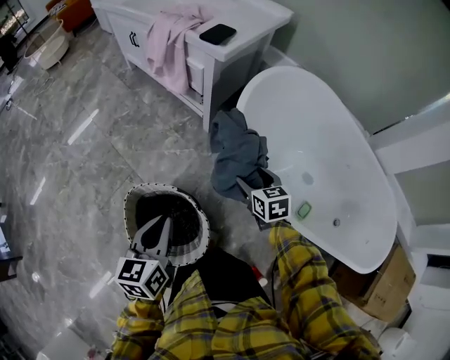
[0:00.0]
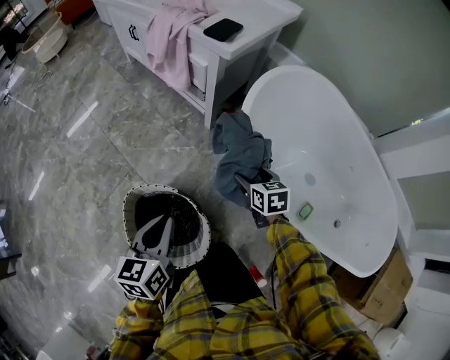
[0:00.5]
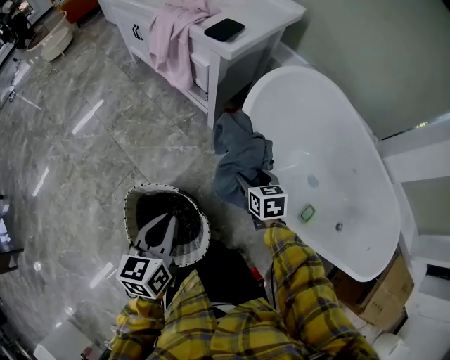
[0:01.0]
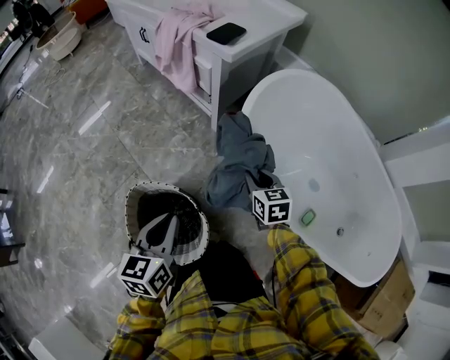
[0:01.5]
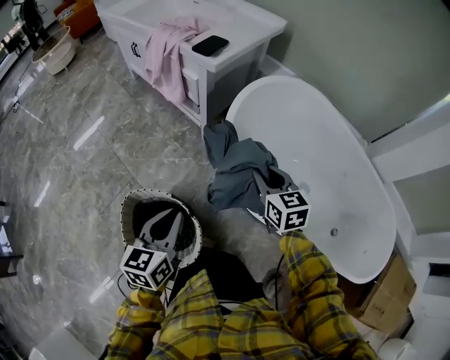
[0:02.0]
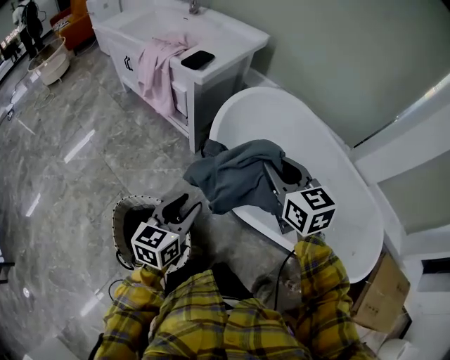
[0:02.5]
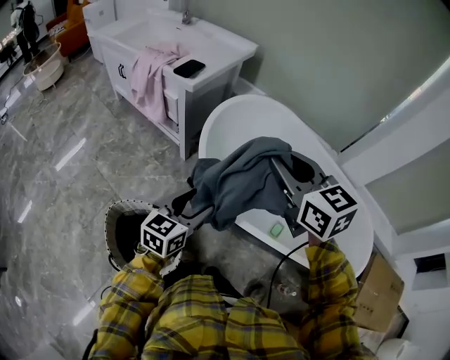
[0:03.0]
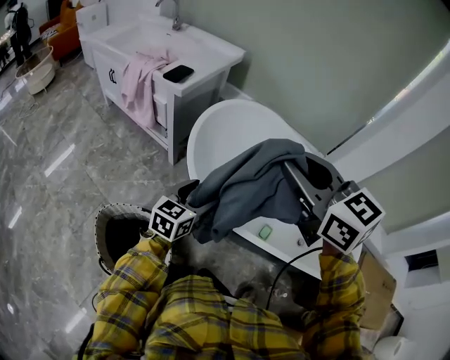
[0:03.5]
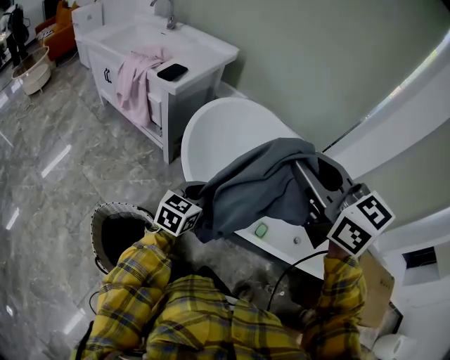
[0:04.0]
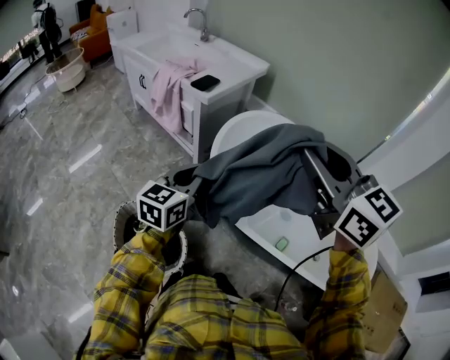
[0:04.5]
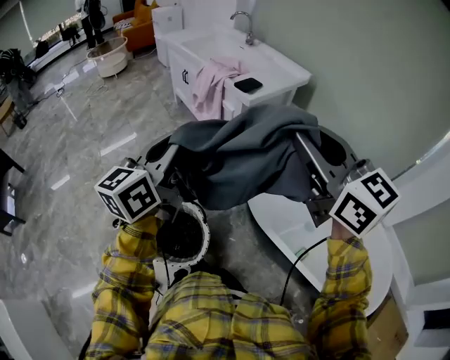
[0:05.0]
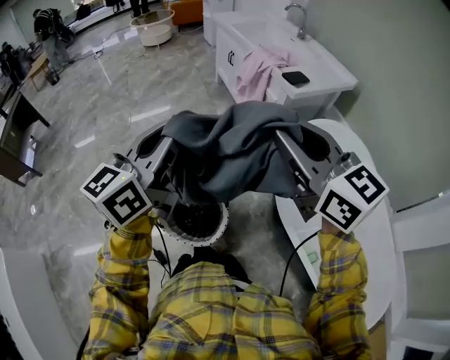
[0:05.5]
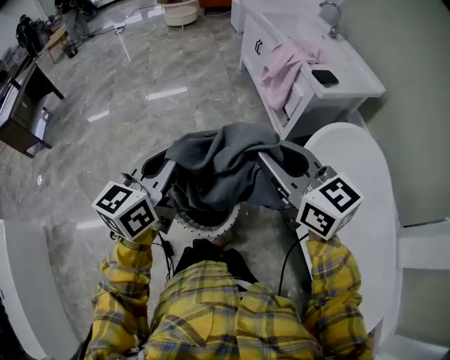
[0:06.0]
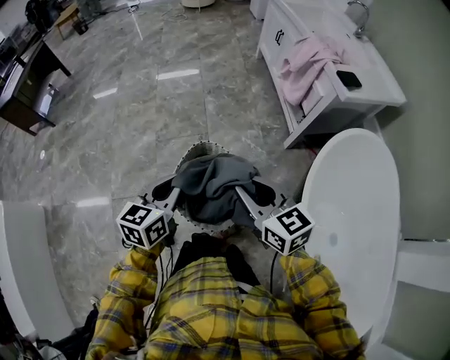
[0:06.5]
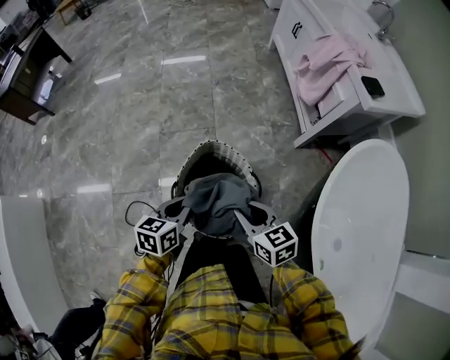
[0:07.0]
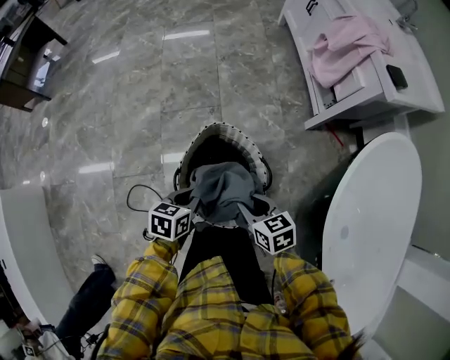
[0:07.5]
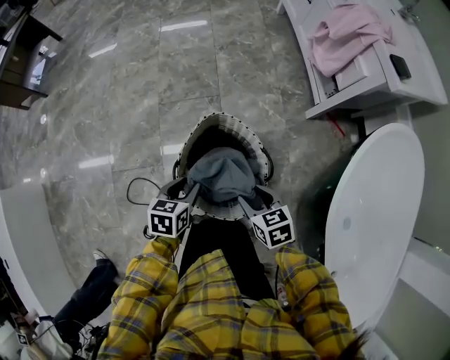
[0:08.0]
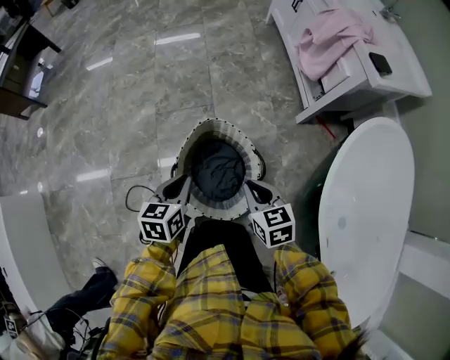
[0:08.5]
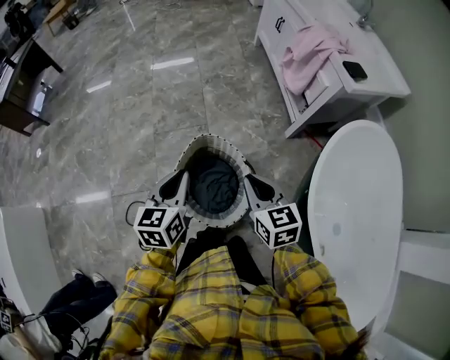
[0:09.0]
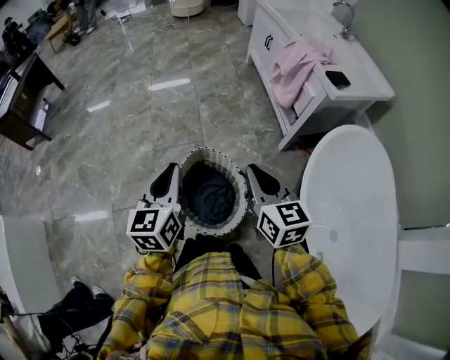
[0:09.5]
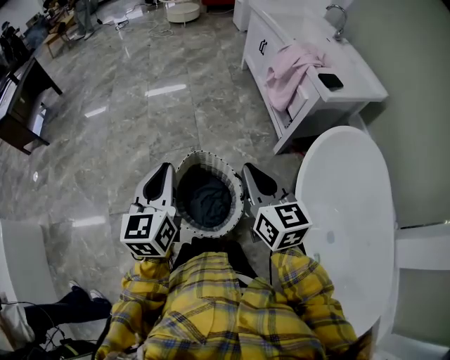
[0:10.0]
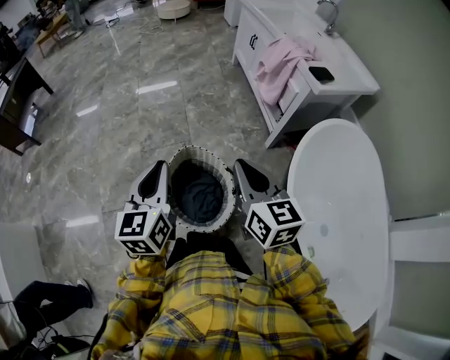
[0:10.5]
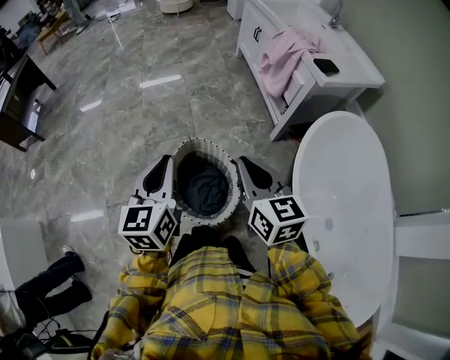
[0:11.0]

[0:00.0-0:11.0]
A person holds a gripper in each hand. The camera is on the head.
0:00.0 to 0:02.0: The right gripper goes about 10 cm upward, and closes its fingers, while the left gripper heads to the right, covering about 5 cm.
0:02.0 to 0:03.5: The left gripper goes about 20 cm to the right and forward, changes its angle by about 30 degrees, and opens up; the right gripper travels upward by approximately 30 cm.
0:03.5 to 0:05.5: The left gripper shifts by some 40 cm, turns by about 50 degrees, and closes its fingers. The right gripper shifts by approximately 20 cm, and changes its angle by roughly 40 degrees.
0:05.5 to 0:07.5: Both grippers travel together downward, about 50 cm. The left gripper tips its fingers downward by about 50 degrees; the right gripper angles its fingers downward, by about 40 degrees.
0:07.5 to 0:09.0: Both grippers travel together upward, about 15 cm. The left gripper turns by some 30 degrees, and opens and closes again. Meanwhile the right gripper swivels approximately 20 degrees.
0:09.0 to 0:11.0: Both grippers travel together upward, roughly 10 cm.

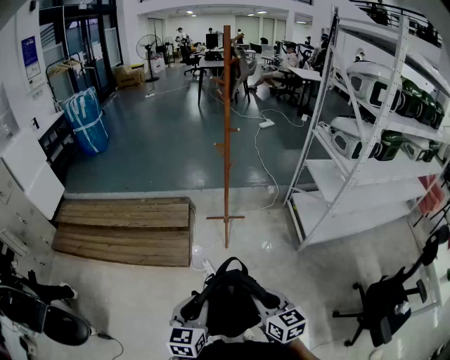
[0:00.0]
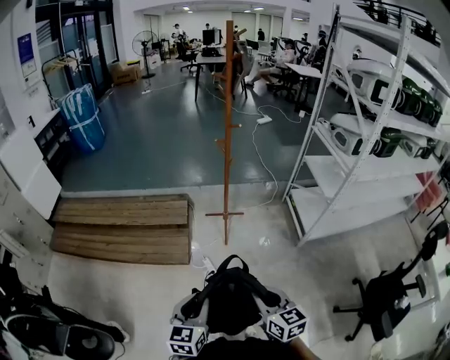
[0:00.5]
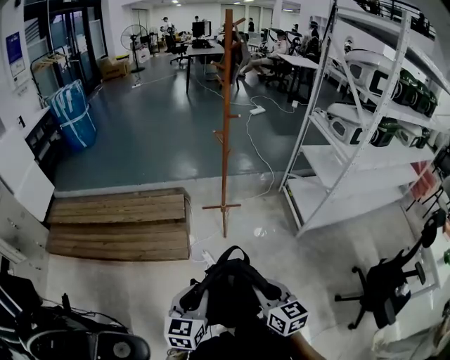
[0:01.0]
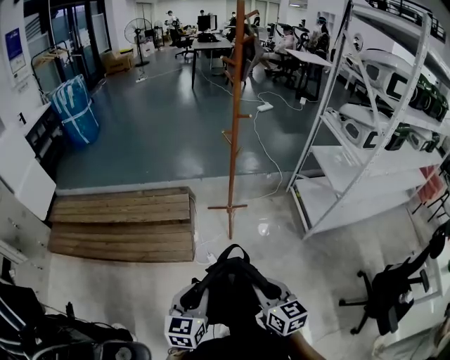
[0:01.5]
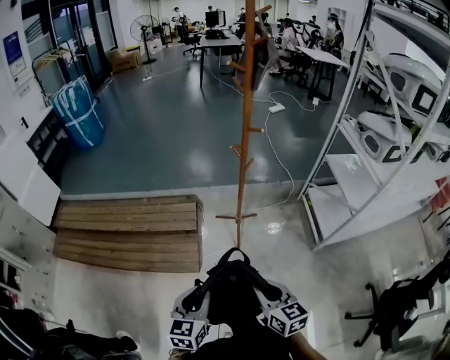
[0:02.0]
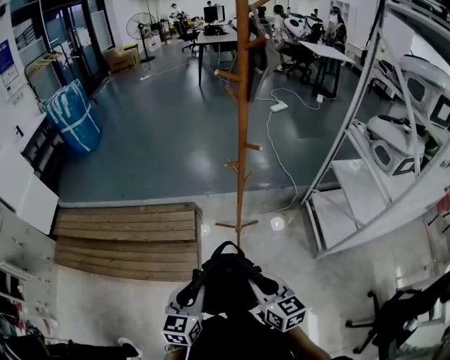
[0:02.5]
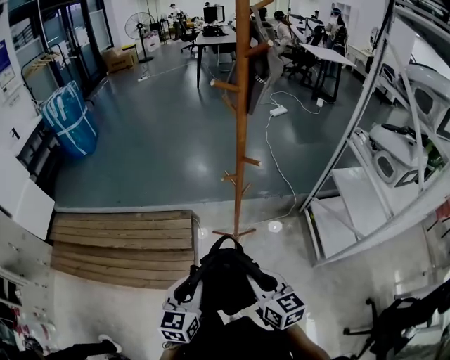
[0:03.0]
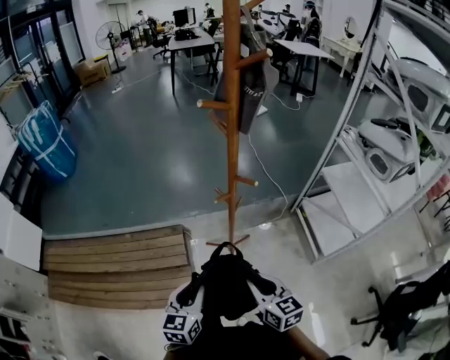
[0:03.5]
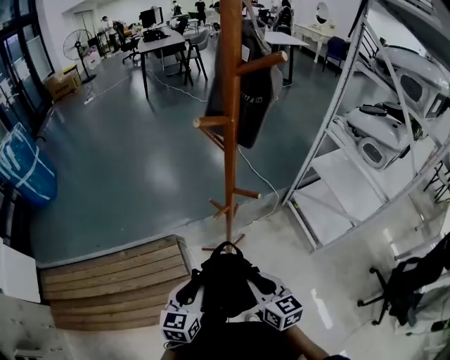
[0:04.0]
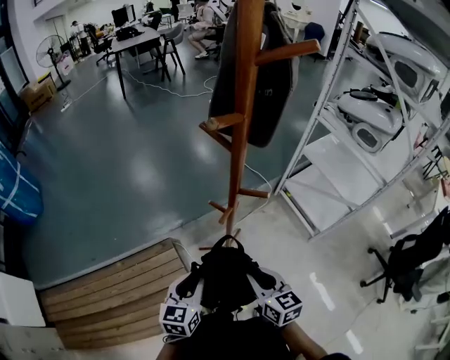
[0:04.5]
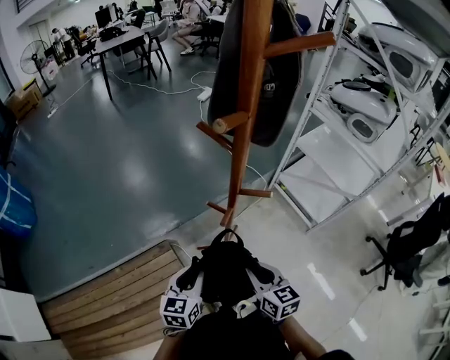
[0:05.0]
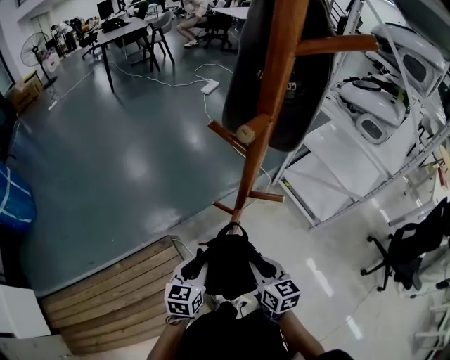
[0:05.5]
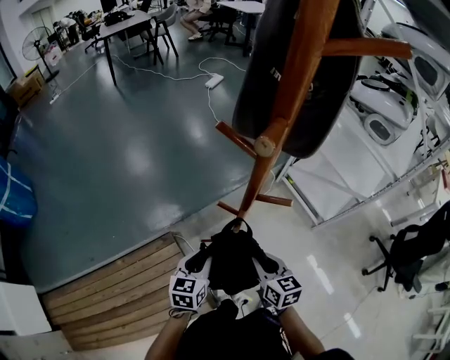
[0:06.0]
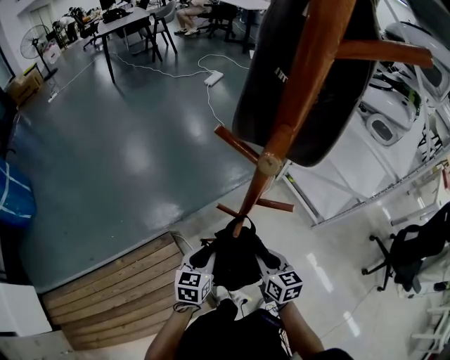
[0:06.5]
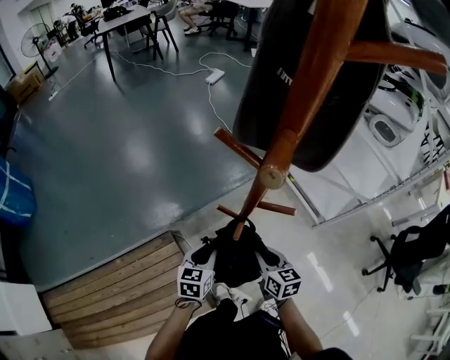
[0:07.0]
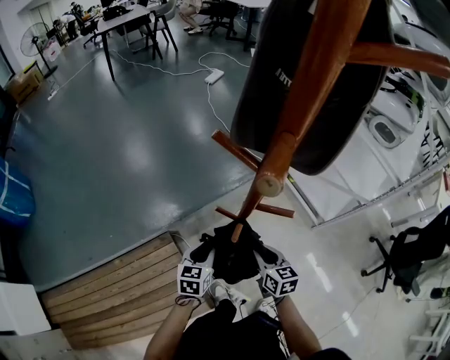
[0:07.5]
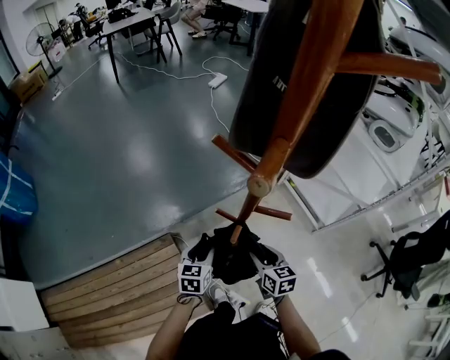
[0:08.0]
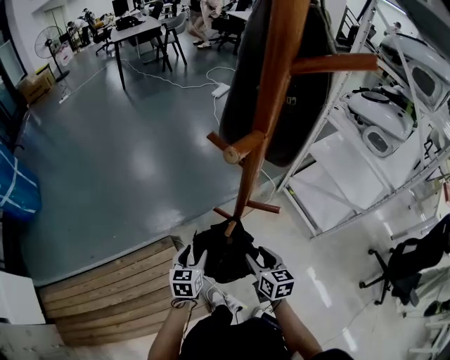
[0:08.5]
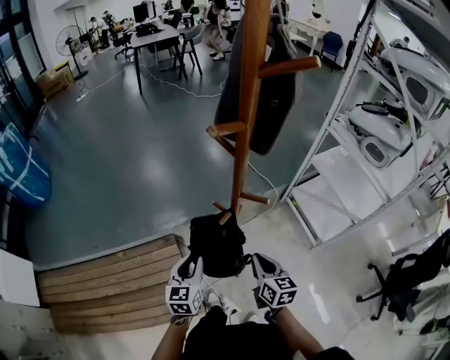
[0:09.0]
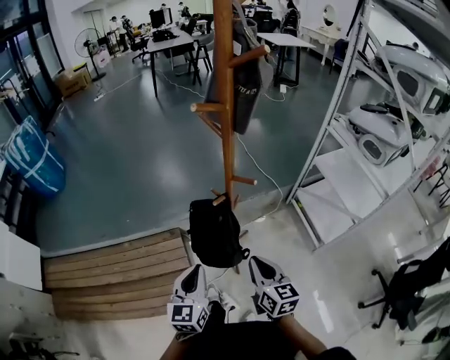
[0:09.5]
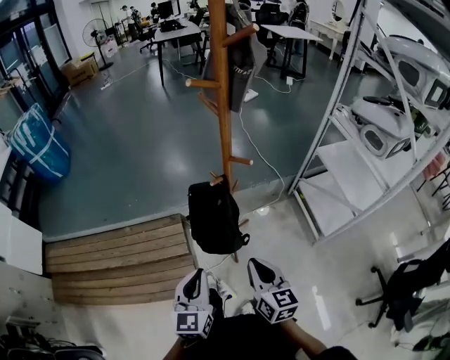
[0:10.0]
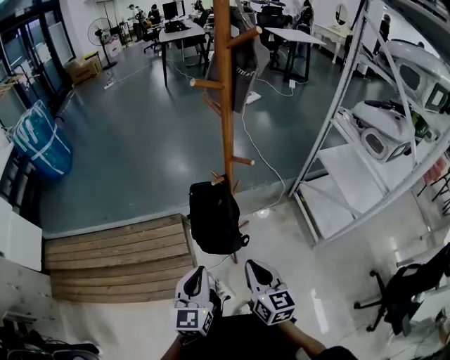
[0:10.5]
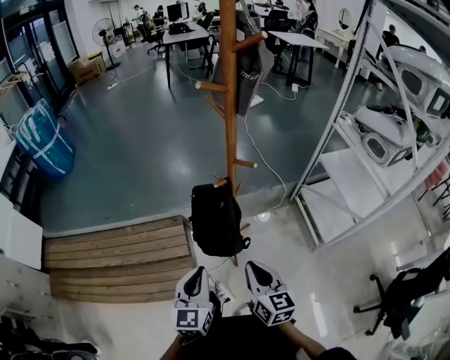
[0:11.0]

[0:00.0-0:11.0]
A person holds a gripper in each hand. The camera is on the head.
0:00.0 to 0:02.0: Both grippers move forward, some 20 cm.
0:02.0 to 0:03.5: The grippers both shift forward by some 30 cm.
0:03.5 to 0:05.5: The left gripper shifts by about 25 cm, and turns by roughly 30 degrees, while the right gripper changes place by approximately 20 cm, and changes its angle by some 30 degrees.
0:05.5 to 0:07.5: The two grippers go some 10 cm downward and forward.
0:07.5 to 0:09.0: The grippers both shift upward and backward by approximately 15 cm. The left gripper rotates some 20 degrees, and opens and closes again; the right gripper opens, then closes once more.
0:09.0 to 0:11.0: The right gripper shifts about 20 cm backward and upward. The left gripper moves backward, about 20 cm, and closes.

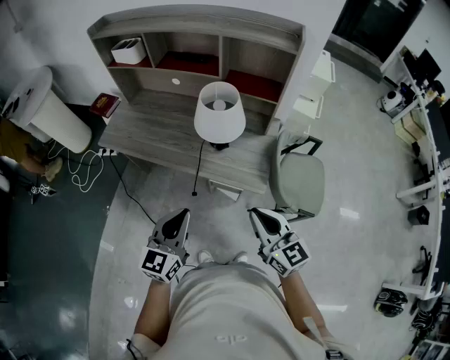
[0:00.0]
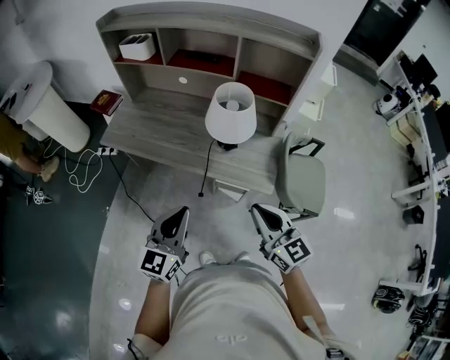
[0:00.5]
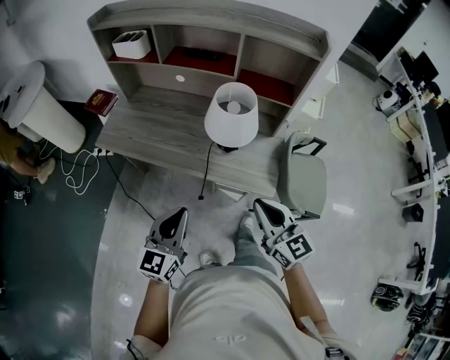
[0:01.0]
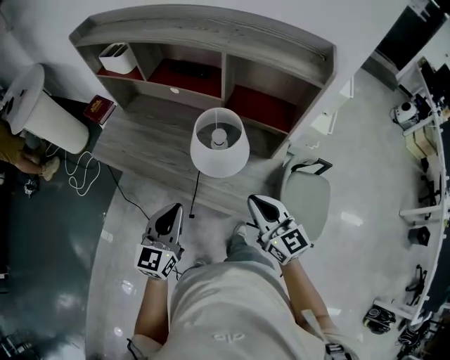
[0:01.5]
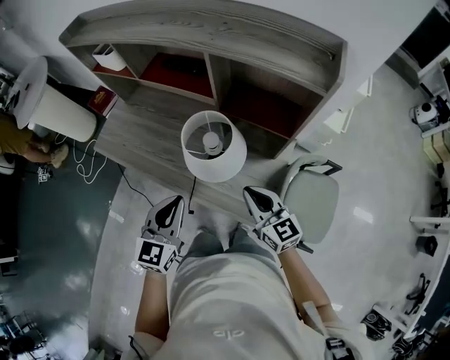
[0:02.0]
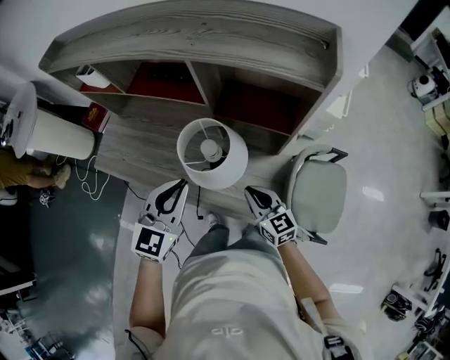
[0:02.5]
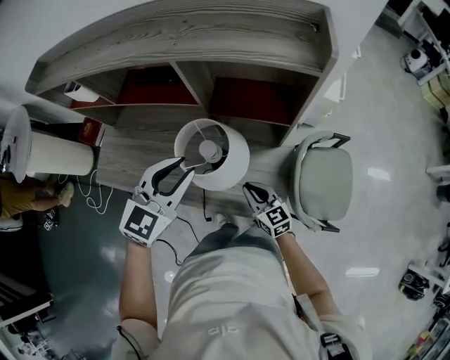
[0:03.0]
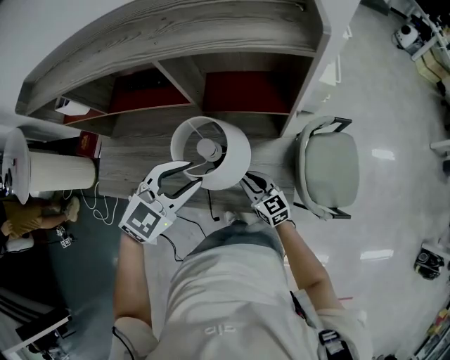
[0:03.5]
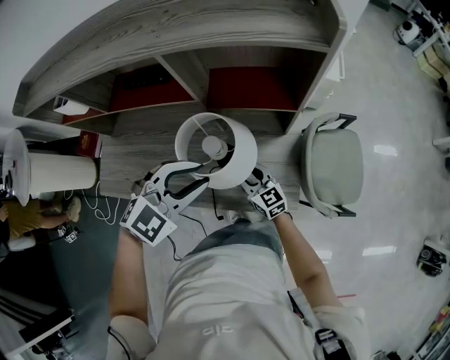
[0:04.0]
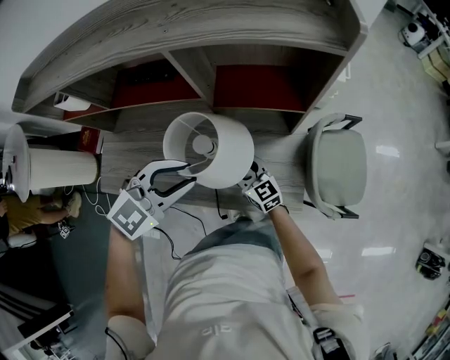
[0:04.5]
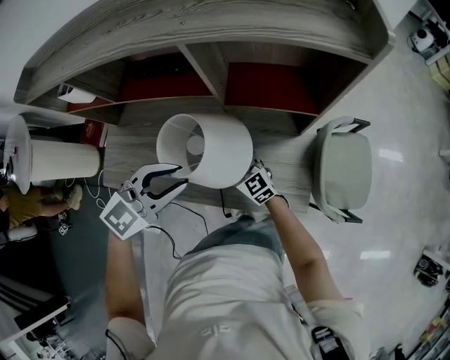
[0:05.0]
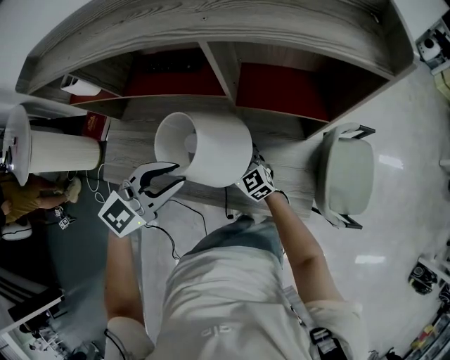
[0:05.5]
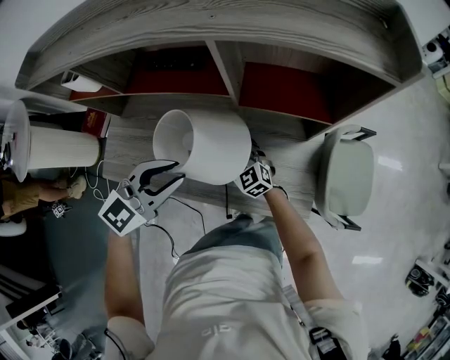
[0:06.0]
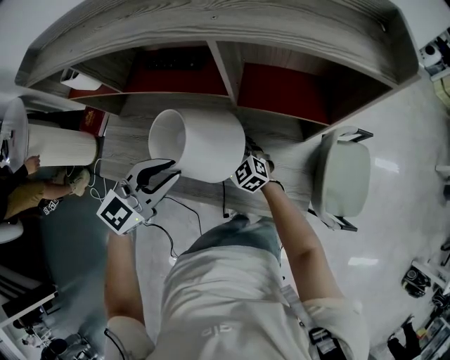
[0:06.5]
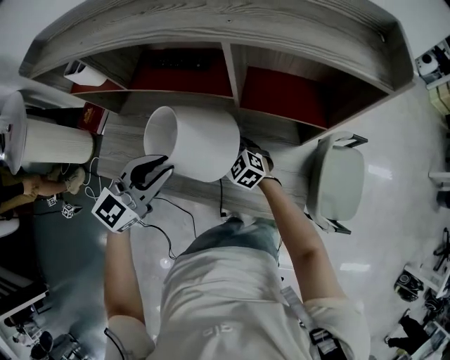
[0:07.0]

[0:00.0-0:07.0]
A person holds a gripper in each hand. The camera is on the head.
0:00.0 to 0:02.0: Both grippers travel together forward, some 25 cm.
0:02.0 to 0:03.5: The left gripper changes place by approximately 10 cm, turns by approximately 50 degrees, and opens up. The right gripper goes some 20 cm downward.
0:03.5 to 0:05.0: The right gripper travels to the left and forward by roughly 15 cm, and opens; the left gripper moves to the left, some 10 cm.
0:05.0 to 0:07.0: The left gripper heads to the left, covering roughly 5 cm. Meanwhile the right gripper moves about 5 cm, swivels some 30 degrees, and closes its fingers.
